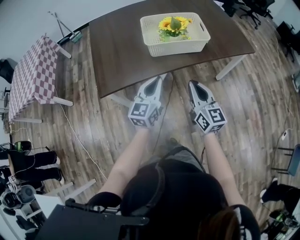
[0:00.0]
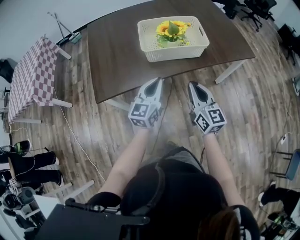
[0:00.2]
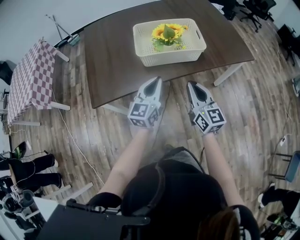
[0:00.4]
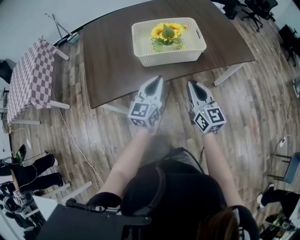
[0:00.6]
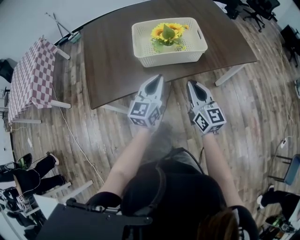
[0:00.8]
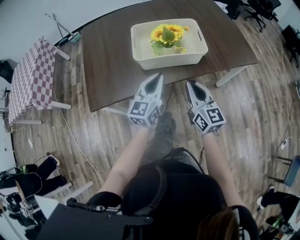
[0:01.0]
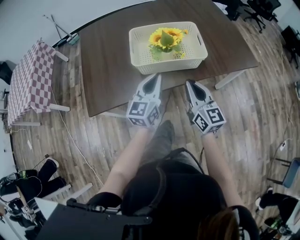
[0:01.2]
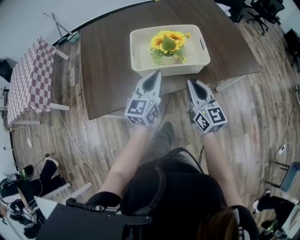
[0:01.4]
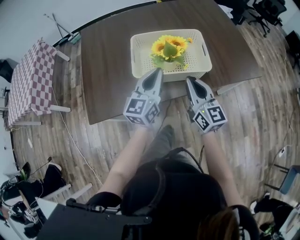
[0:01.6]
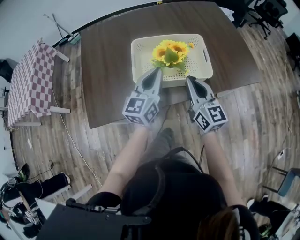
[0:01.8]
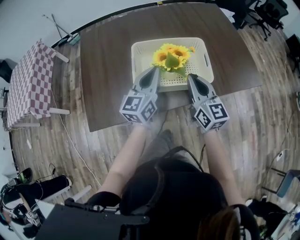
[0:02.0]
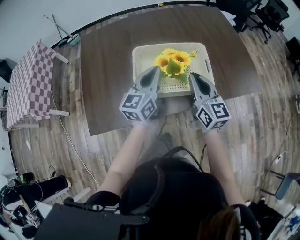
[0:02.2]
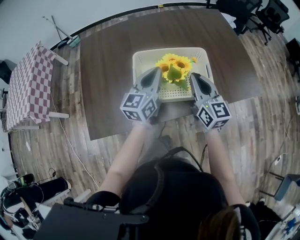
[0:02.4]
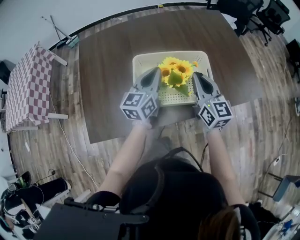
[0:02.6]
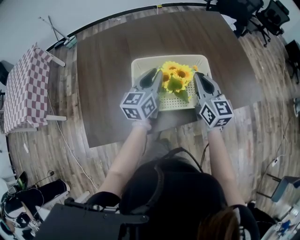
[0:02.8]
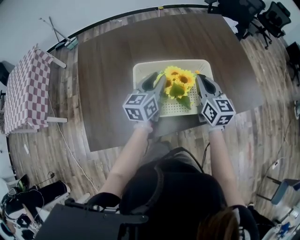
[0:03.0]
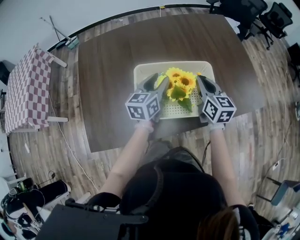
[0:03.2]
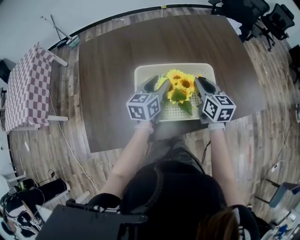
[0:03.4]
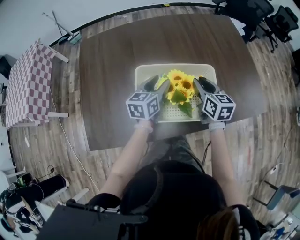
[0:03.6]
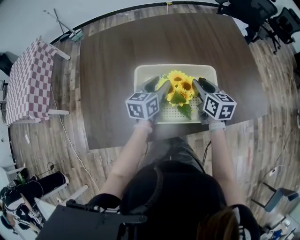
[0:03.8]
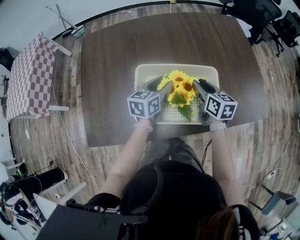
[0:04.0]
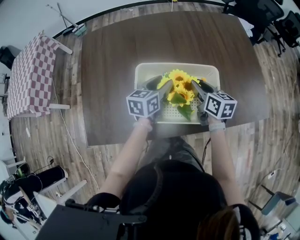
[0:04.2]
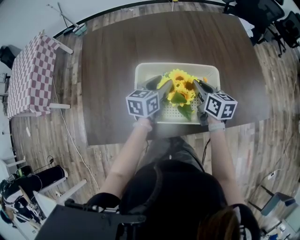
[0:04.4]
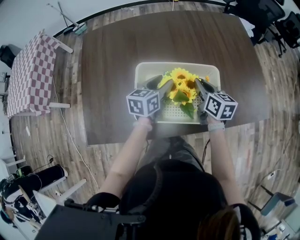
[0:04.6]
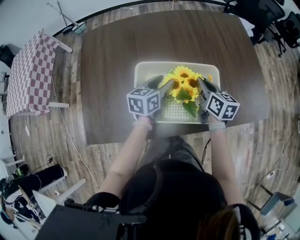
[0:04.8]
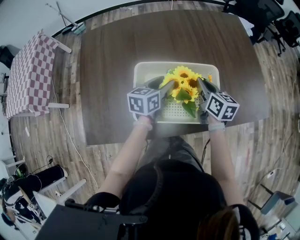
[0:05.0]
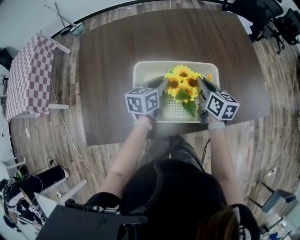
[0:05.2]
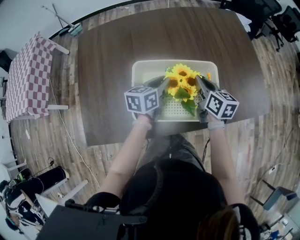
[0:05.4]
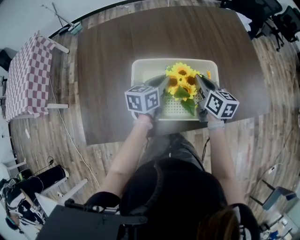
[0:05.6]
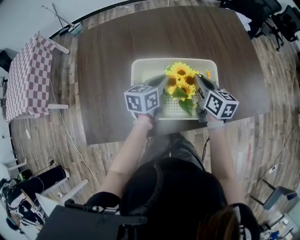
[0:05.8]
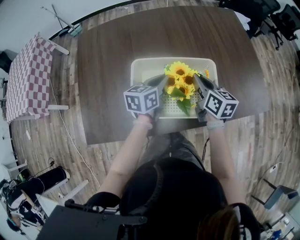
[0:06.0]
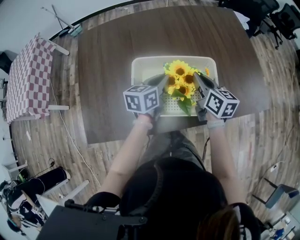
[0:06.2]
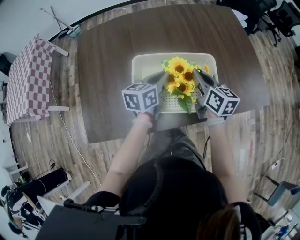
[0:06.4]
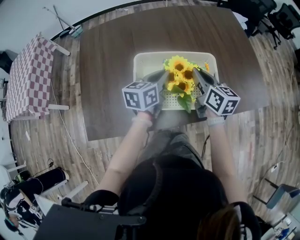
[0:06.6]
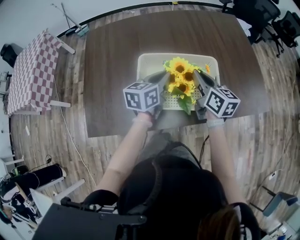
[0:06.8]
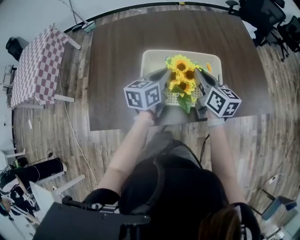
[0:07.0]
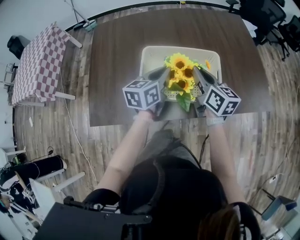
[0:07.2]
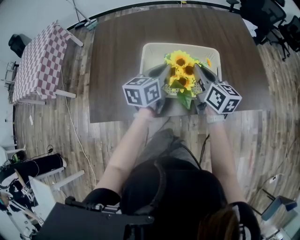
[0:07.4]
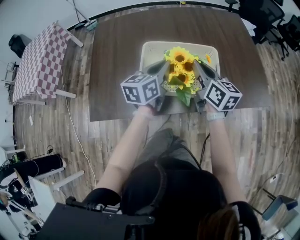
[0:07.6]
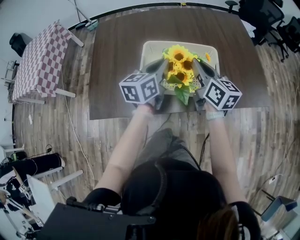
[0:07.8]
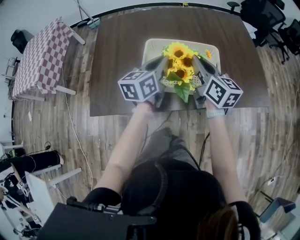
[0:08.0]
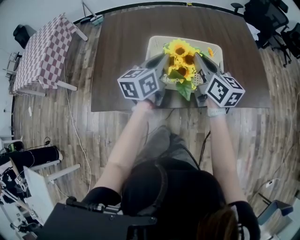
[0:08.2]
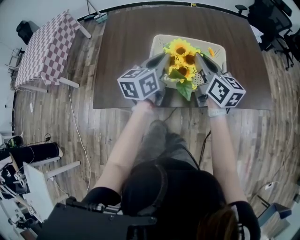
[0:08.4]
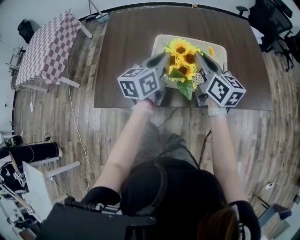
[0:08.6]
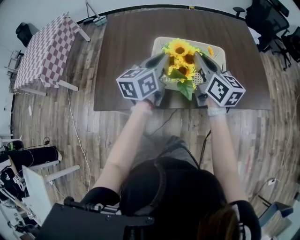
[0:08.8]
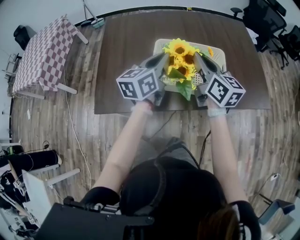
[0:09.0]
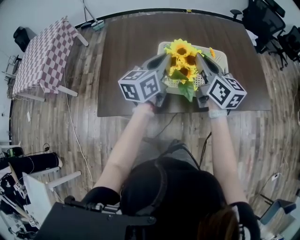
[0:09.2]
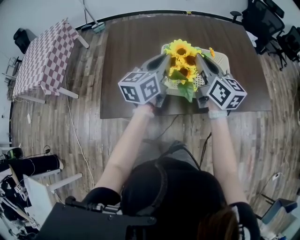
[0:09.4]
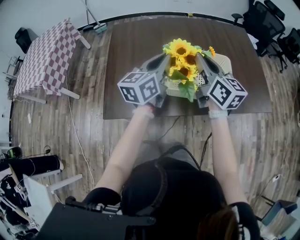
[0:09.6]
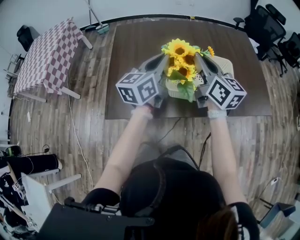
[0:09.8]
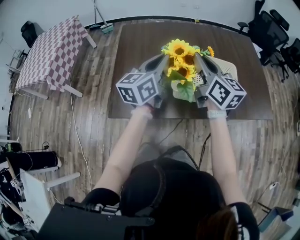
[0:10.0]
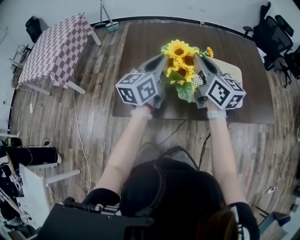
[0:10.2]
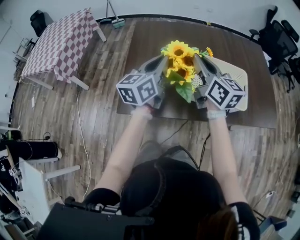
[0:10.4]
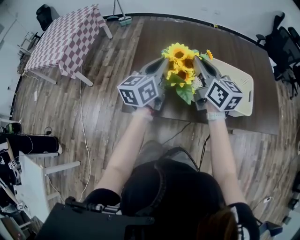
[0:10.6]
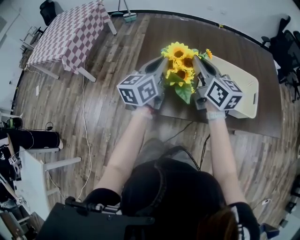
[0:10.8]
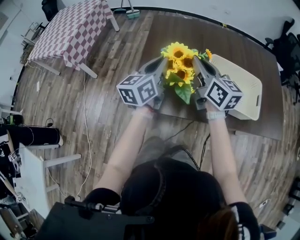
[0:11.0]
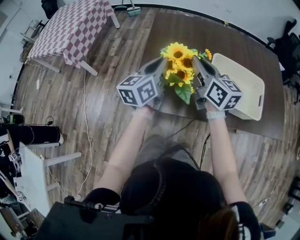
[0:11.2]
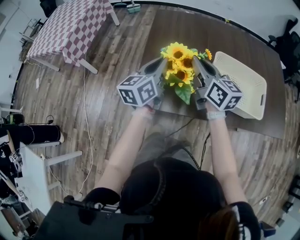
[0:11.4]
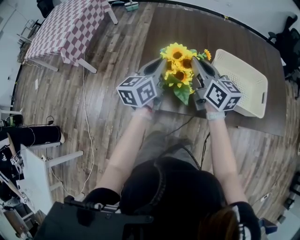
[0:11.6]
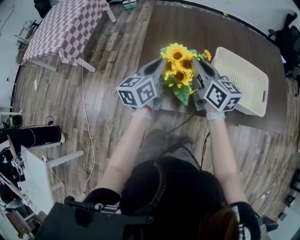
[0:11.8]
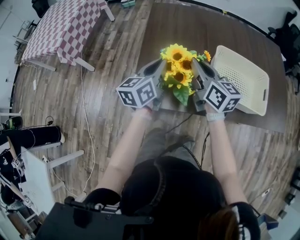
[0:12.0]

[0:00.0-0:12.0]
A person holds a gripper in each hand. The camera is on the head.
0:00.0 to 0:01.6: Both grippers travel together forward, about 20 cm.
0:01.6 to 0:03.0: Both grippers travel together forward, approximately 15 cm. The left gripper opens up.
0:03.0 to 0:04.4: Both grippers travel together downward, approximately 5 cm. The right gripper swivels approximately 30 degrees, and opens, then closes once more.
0:04.4 to 0:06.0: The left gripper closes up.
0:06.0 to 0:07.6: The grippers both shift upward and backward by about 10 cm.
0:07.6 to 0:09.0: Both grippers move upward and to the left, about 5 cm.
0:09.0 to 0:10.4: Both grippers move to the left, roughly 15 cm.
0:10.4 to 0:12.0: Both grippers travel together to the left and downward, about 15 cm.

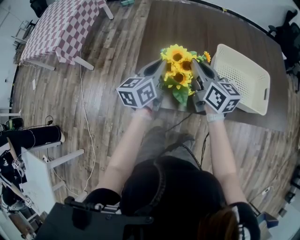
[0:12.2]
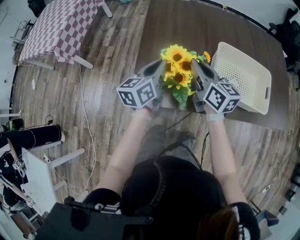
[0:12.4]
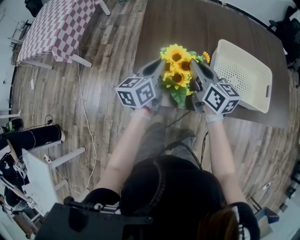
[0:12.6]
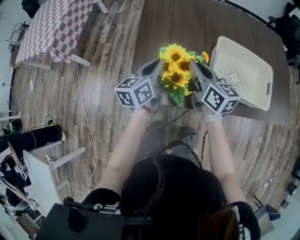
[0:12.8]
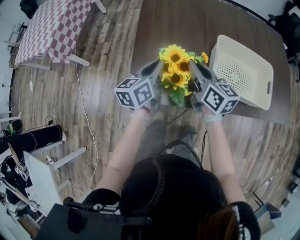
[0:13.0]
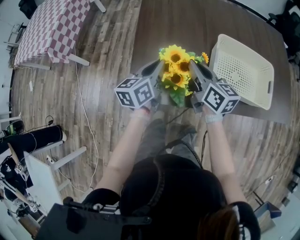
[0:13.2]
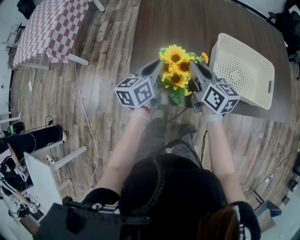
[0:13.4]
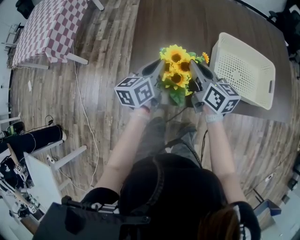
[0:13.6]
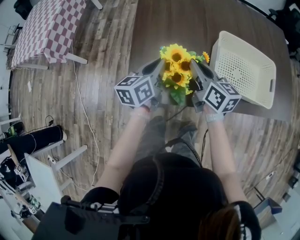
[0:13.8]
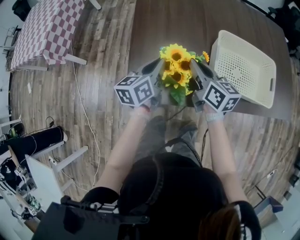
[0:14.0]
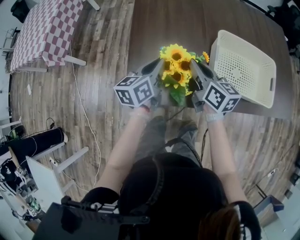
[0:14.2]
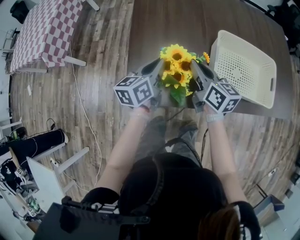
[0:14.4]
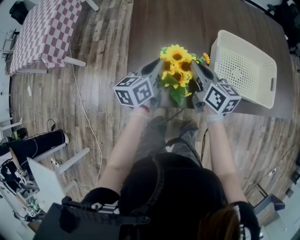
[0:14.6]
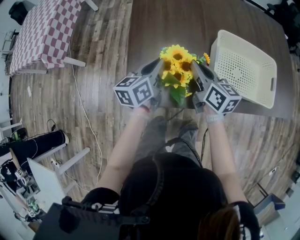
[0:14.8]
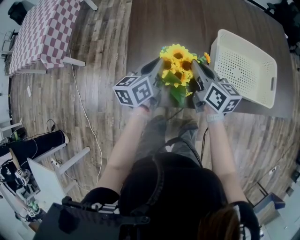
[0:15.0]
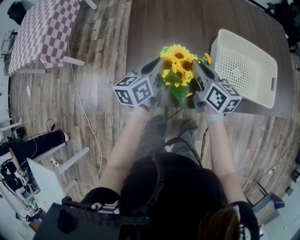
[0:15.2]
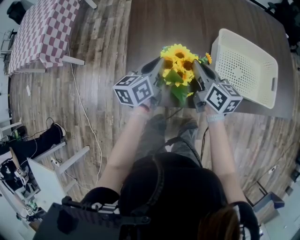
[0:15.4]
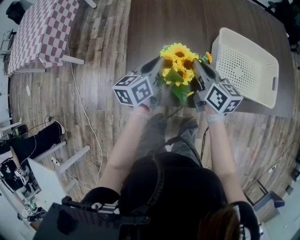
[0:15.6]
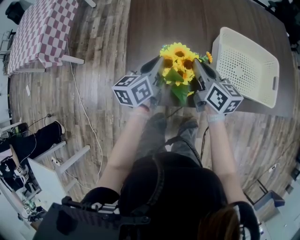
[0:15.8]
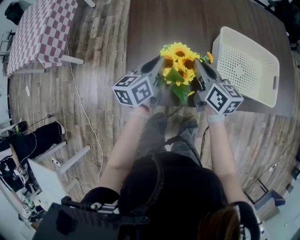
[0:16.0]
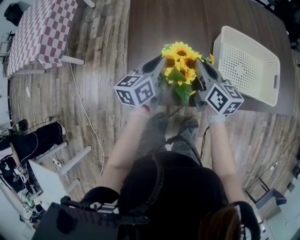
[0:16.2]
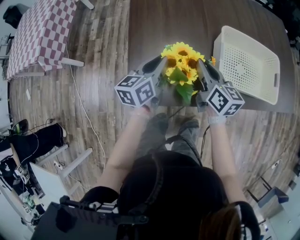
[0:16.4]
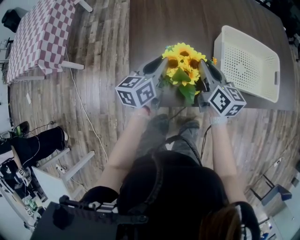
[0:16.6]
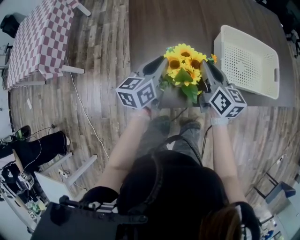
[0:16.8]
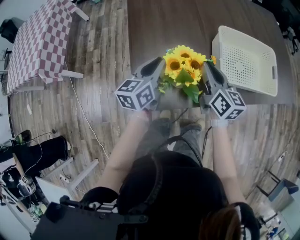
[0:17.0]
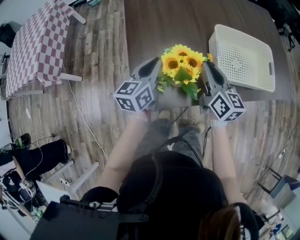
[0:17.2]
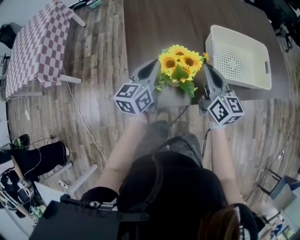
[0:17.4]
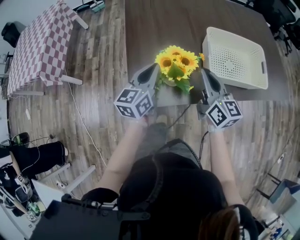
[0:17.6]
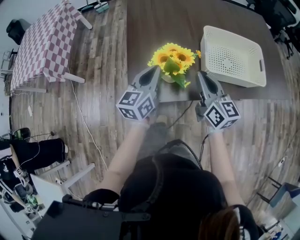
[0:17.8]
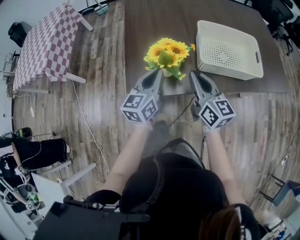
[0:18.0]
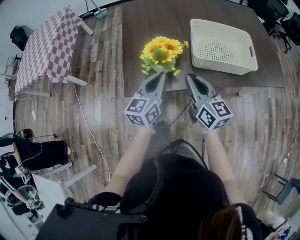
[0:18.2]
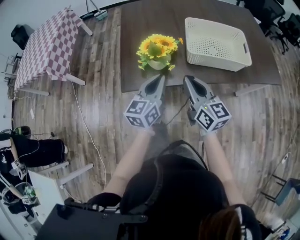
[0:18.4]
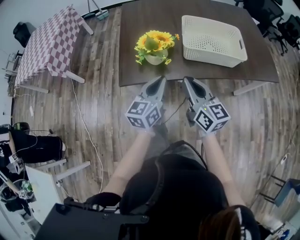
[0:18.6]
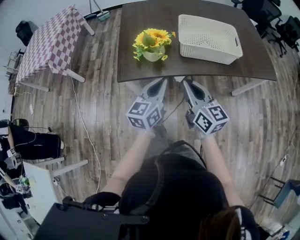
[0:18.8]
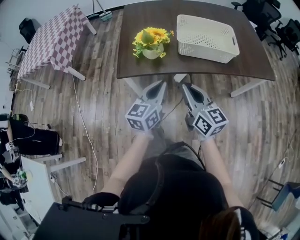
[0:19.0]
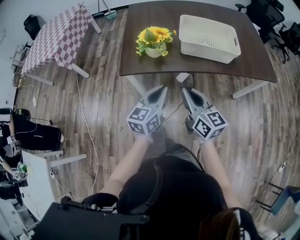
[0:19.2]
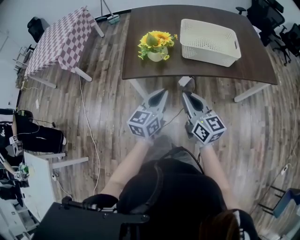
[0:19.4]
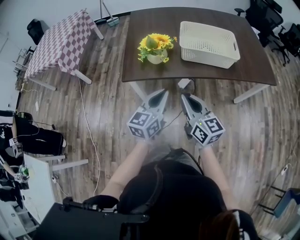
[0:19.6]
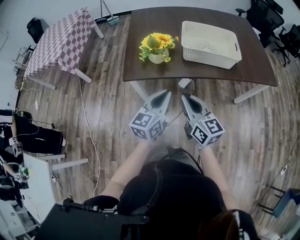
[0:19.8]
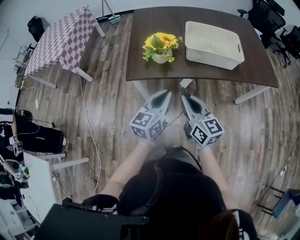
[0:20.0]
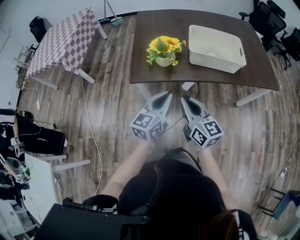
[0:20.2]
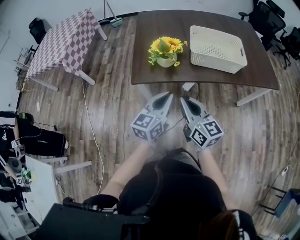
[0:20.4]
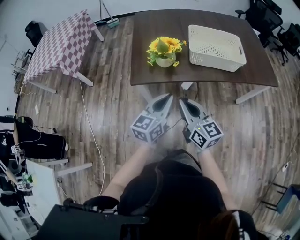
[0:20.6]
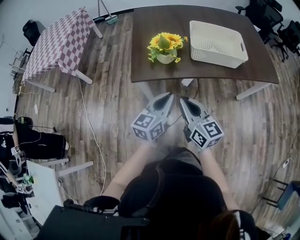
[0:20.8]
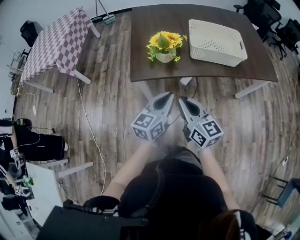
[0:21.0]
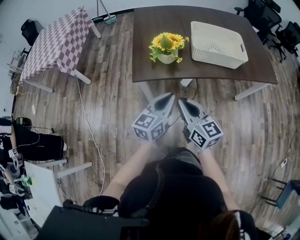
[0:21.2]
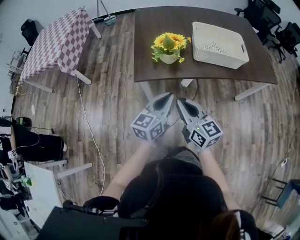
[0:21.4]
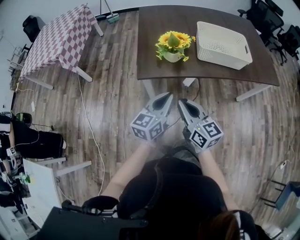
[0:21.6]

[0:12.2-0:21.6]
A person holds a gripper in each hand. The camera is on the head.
0:12.2 to 0:13.8: Both grippers move downward, approximately 5 cm.
0:13.8 to 0:17.0: The grippers stay close to where they were, moving slightly.
0:17.0 to 0:18.4: The left gripper shifts some 20 cm backward and to the right; the right gripper moves backward, some 20 cm.
0:18.4 to 0:20.0: The two grippers go roughly 15 cm backward.
0:20.0 to 0:21.6: The grippers both shift to the left by approximately 10 cm.

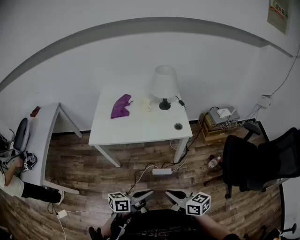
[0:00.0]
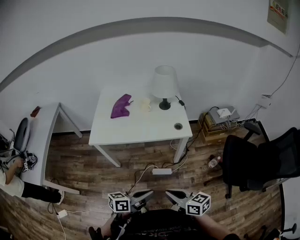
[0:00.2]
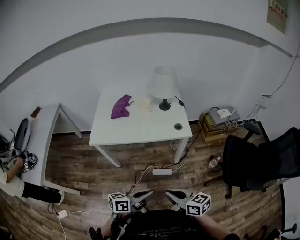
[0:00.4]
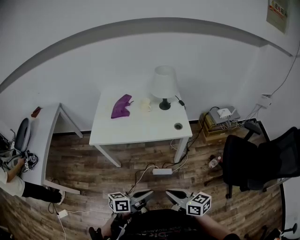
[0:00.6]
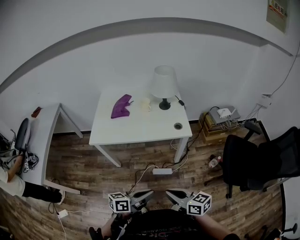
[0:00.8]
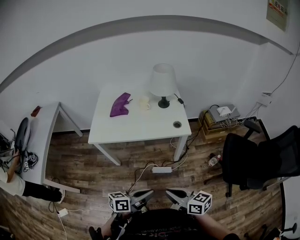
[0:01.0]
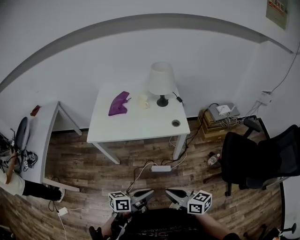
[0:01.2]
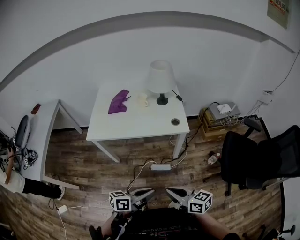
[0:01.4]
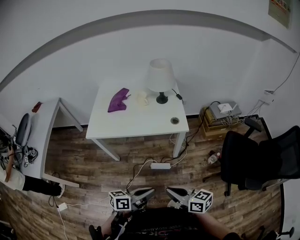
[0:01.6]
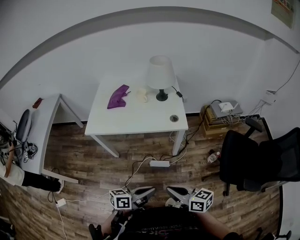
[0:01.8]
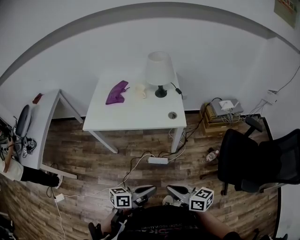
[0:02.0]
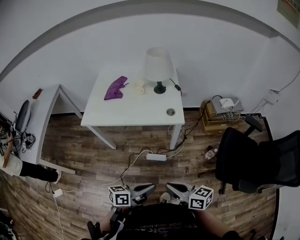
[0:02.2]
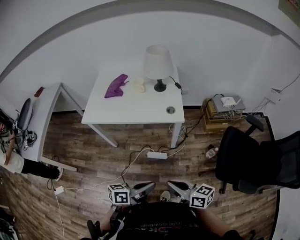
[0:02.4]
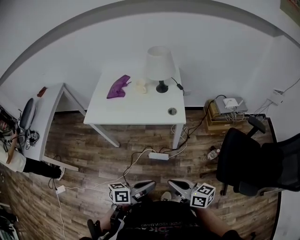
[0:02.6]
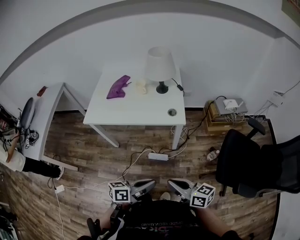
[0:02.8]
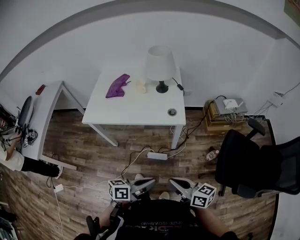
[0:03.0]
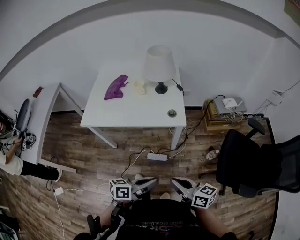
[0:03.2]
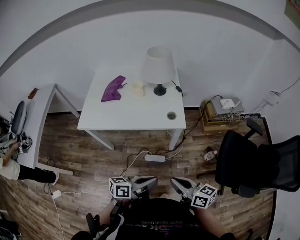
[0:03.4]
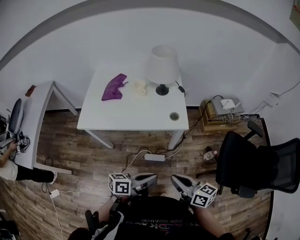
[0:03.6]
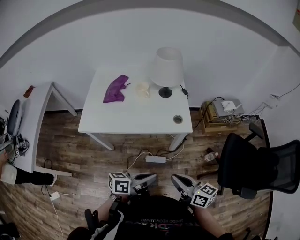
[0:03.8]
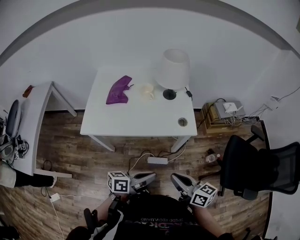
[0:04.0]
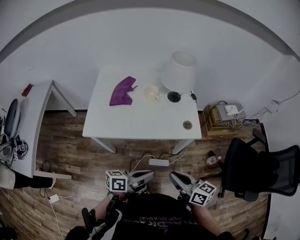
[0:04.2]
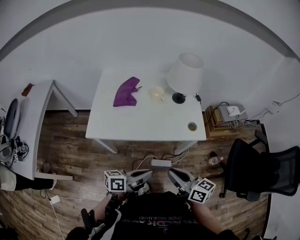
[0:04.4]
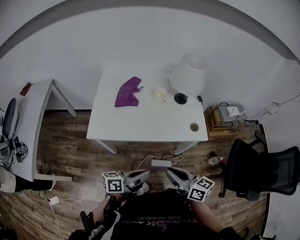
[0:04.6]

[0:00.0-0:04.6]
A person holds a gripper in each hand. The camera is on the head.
0:00.0 to 0:01.6: Both grippers move to the right, approximately 5 cm.
0:01.6 to 0:03.0: The two grippers go approximately 10 cm to the right.
0:03.0 to 0:04.6: Both grippers travel together to the left and forward, approximately 25 cm.
